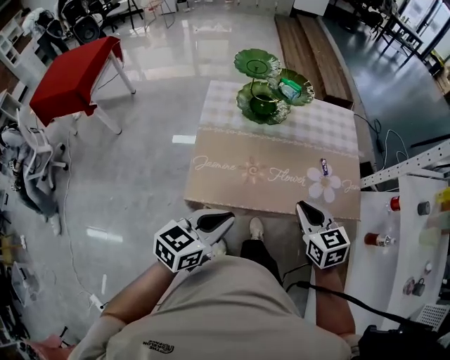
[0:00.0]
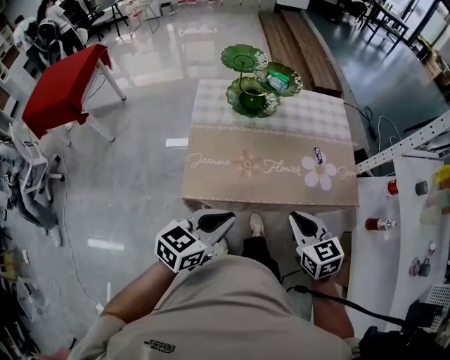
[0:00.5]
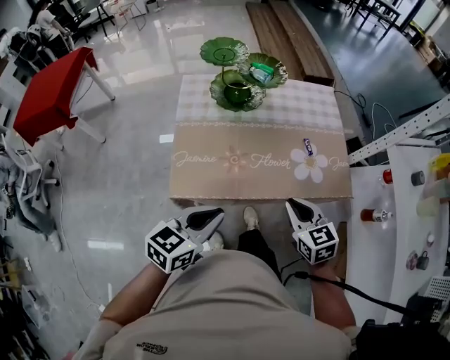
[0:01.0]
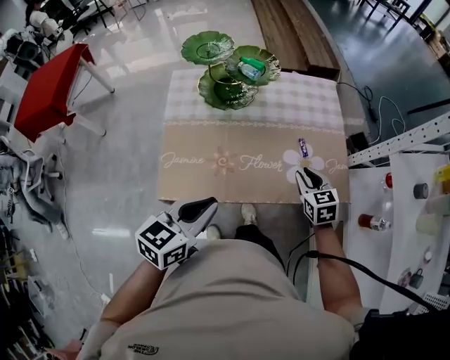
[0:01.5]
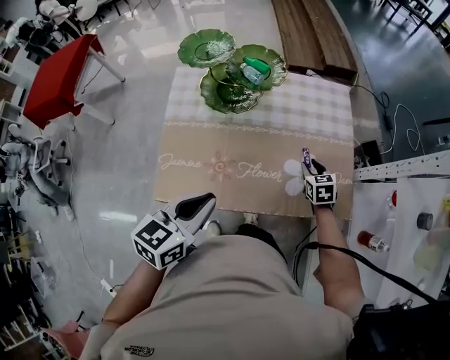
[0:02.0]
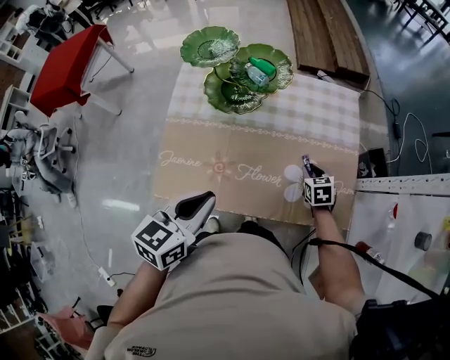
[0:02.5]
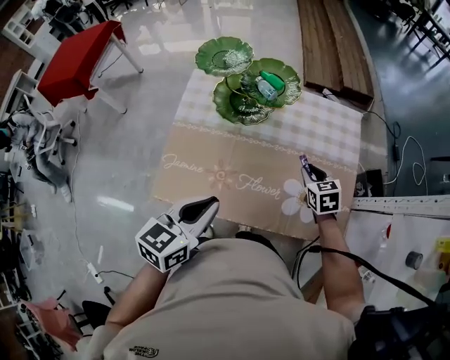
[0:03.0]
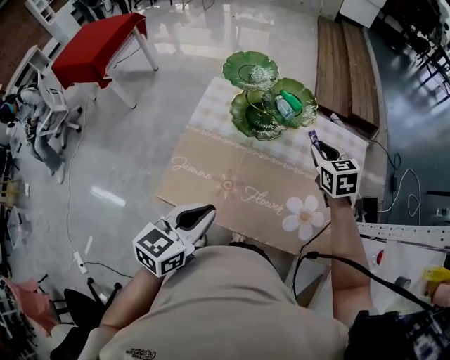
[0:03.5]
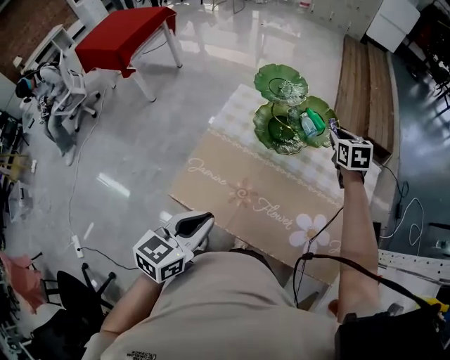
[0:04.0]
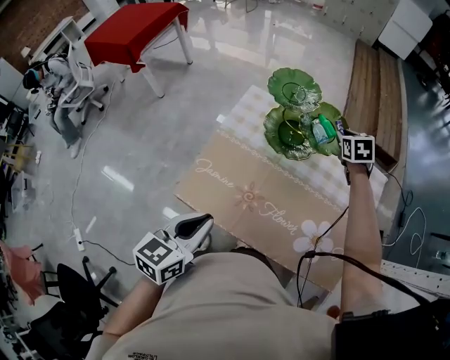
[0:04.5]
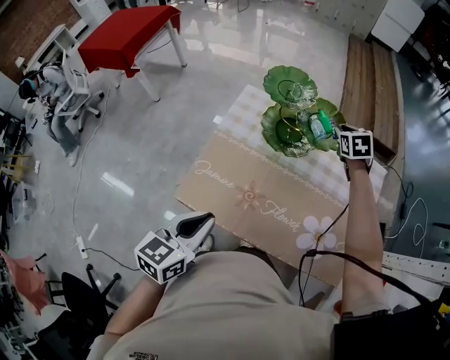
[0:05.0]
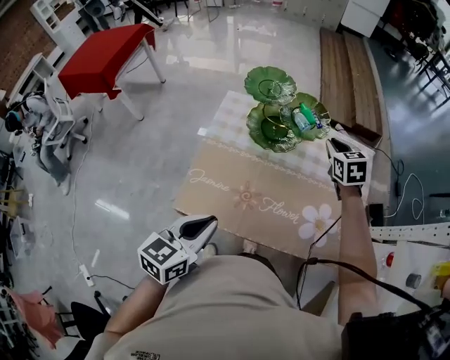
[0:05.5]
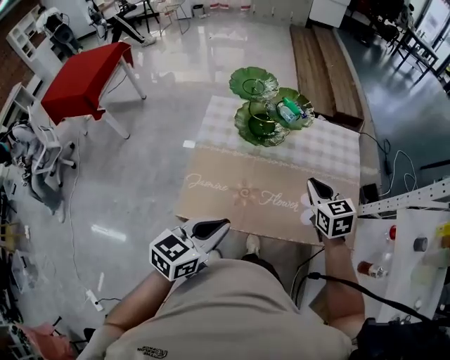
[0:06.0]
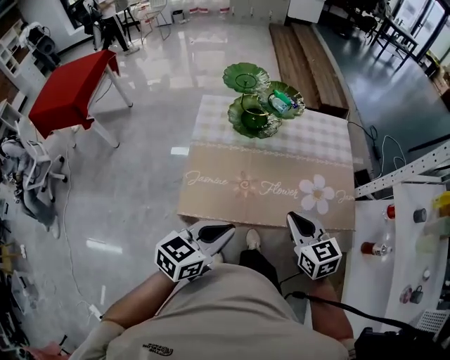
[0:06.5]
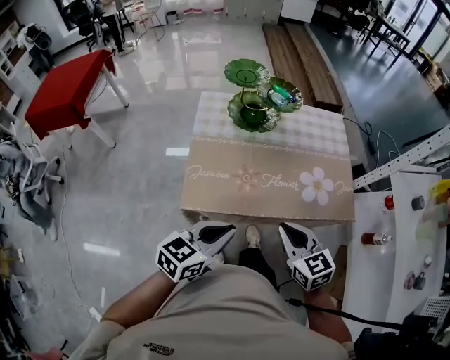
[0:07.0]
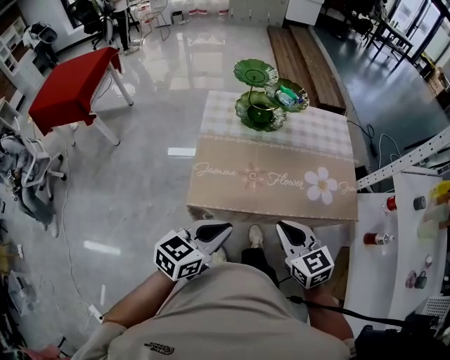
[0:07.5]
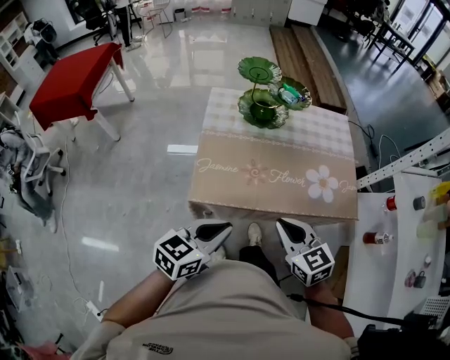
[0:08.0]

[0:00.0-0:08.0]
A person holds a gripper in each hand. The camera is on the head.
0:00.0 to 0:02.0: The right gripper is displaced forward, downward and to the right by some 35 cm, and opens up. The left gripper goes about 15 cm forward and to the right.
0:02.0 to 0:04.0: The right gripper is displaced forward, upward and to the left by some 35 cm, and turns by about 20 degrees; the left gripper is displaced to the left by about 5 cm, and swivels about 20 degrees.
0:04.0 to 0:06.0: The left gripper changes its angle by approximately 20 degrees, while the right gripper moves backward, roughly 25 cm.
0:06.0 to 0:08.0: The right gripper travels backward by roughly 25 cm. The left gripper moves backward, approximately 10 cm.

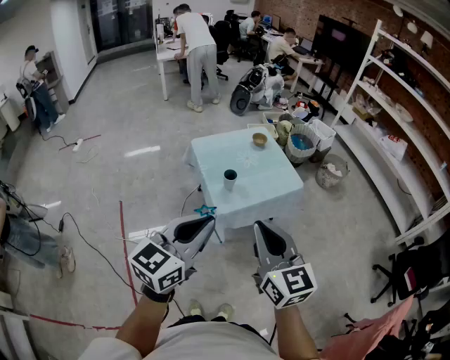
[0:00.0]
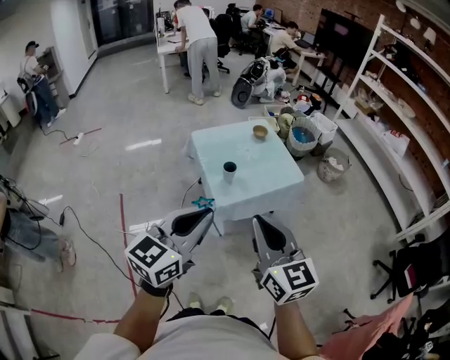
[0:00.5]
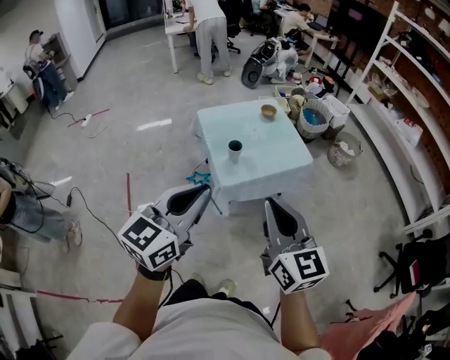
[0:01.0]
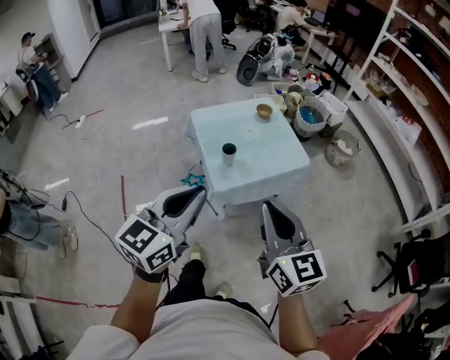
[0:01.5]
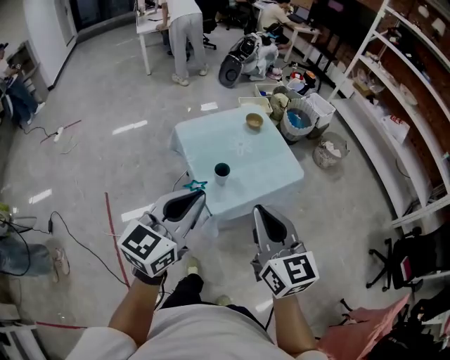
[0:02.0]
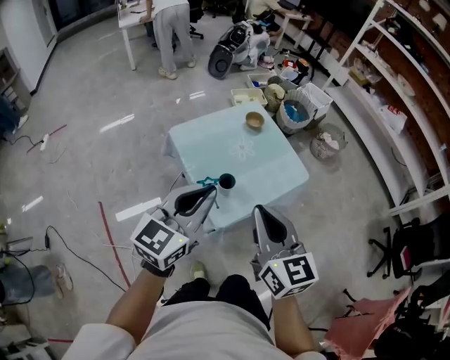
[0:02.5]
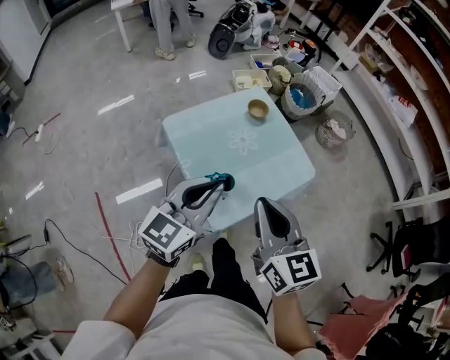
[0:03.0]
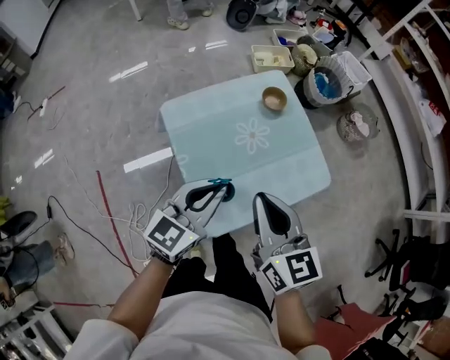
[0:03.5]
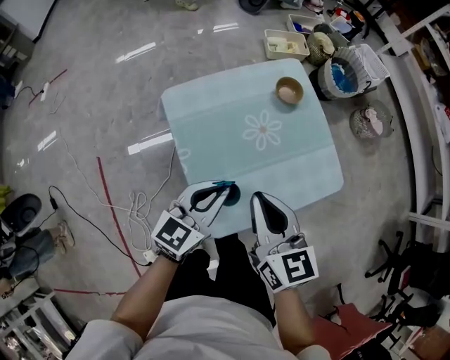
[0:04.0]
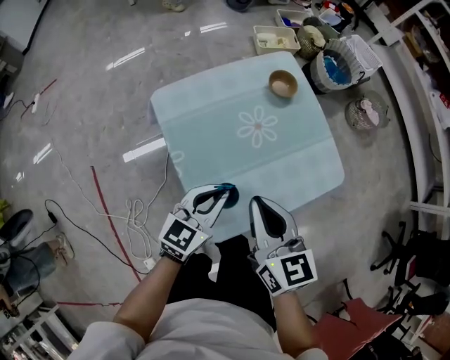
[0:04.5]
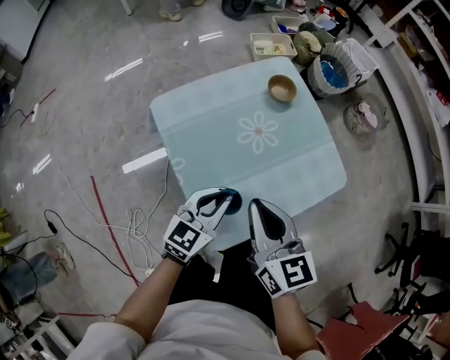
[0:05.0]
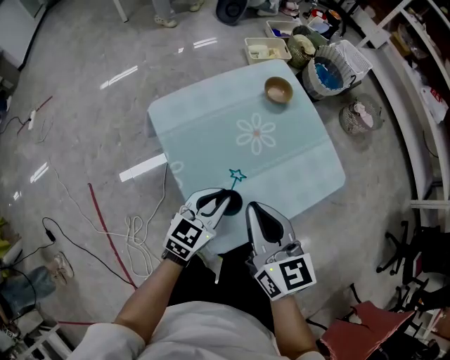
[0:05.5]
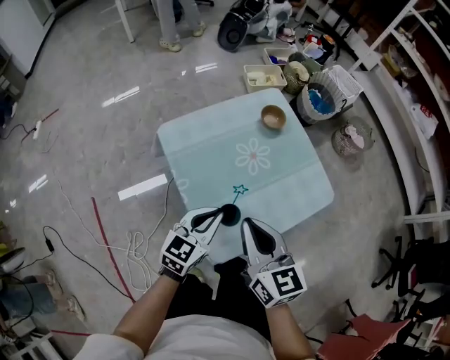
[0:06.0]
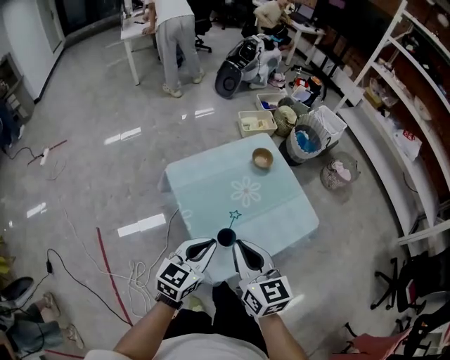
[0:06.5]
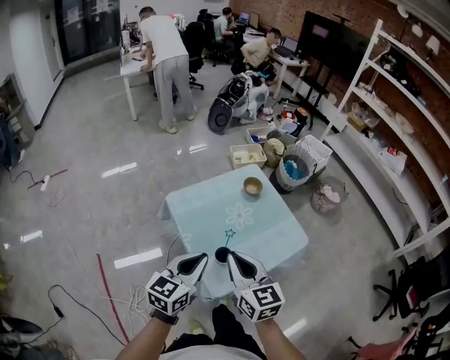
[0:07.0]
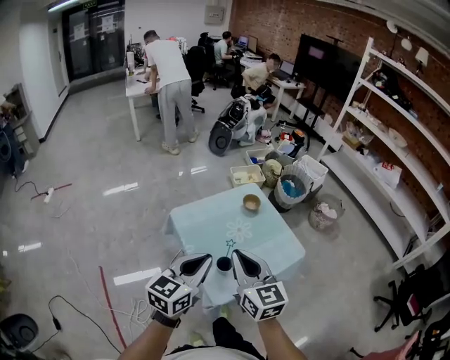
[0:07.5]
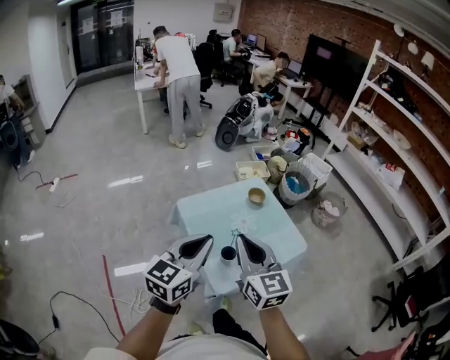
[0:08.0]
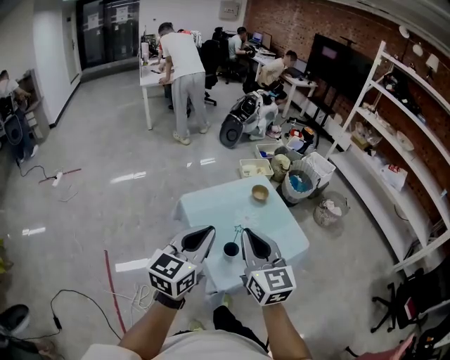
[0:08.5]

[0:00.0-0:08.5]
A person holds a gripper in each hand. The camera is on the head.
0:00.0 to 0:02.0: Both grippers move forward, about 15 cm.
0:02.0 to 0:04.0: Both grippers move forward and downward, about 40 cm.
0:04.0 to 0:06.5: The left gripper shifts approximately 5 cm backward, and reaches some 10 cm downward, then returns, while the right gripper goes some 10 cm backward and upward.
0:06.5 to 0:08.5: Both grippers move upward, about 20 cm.

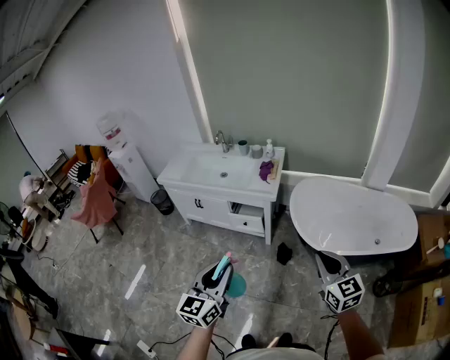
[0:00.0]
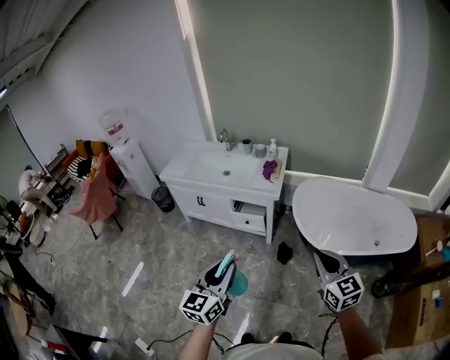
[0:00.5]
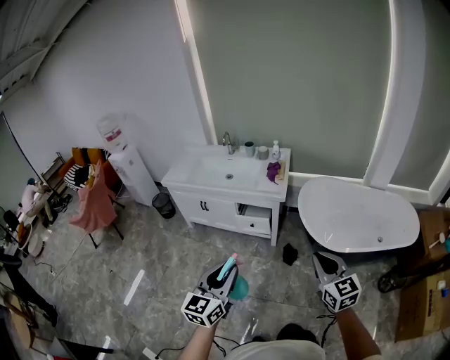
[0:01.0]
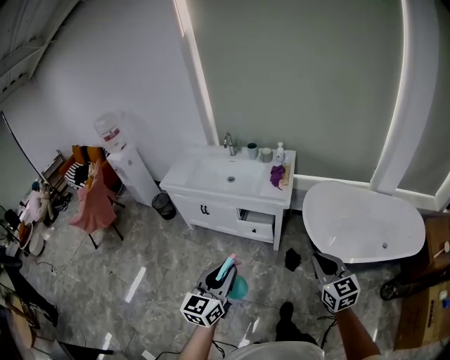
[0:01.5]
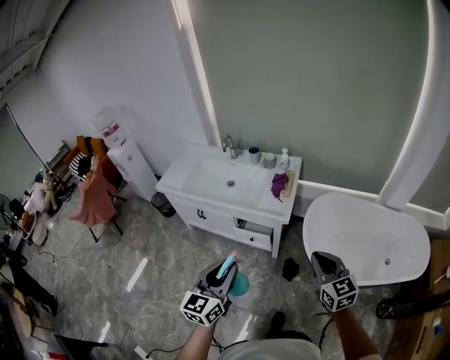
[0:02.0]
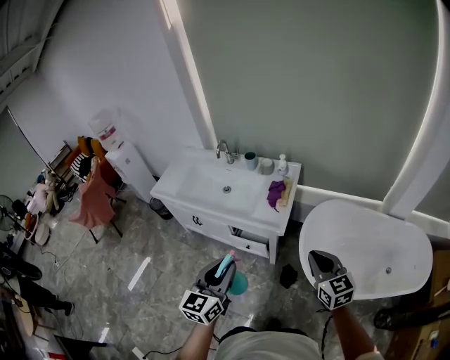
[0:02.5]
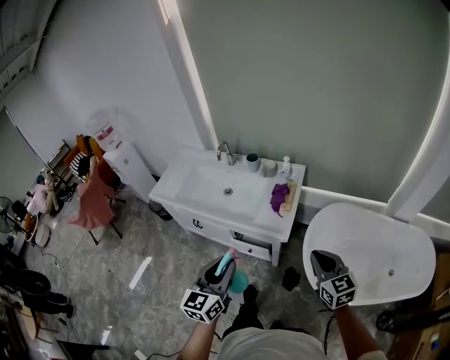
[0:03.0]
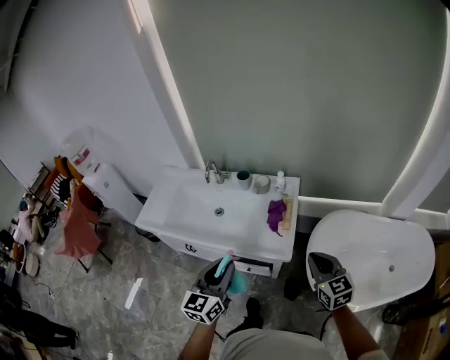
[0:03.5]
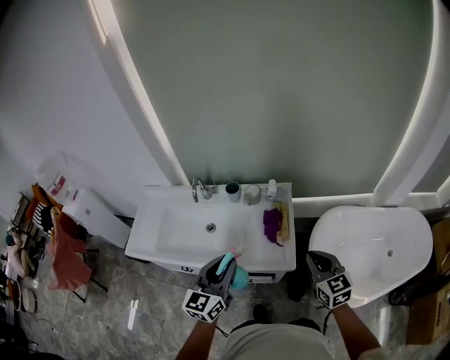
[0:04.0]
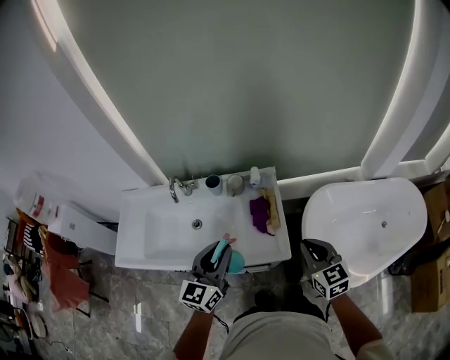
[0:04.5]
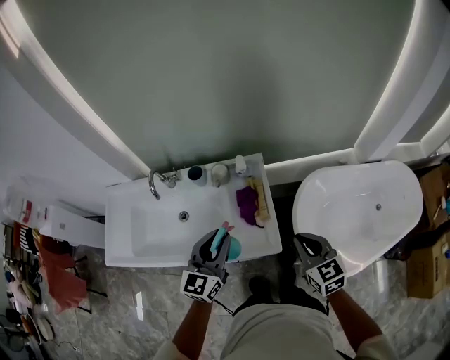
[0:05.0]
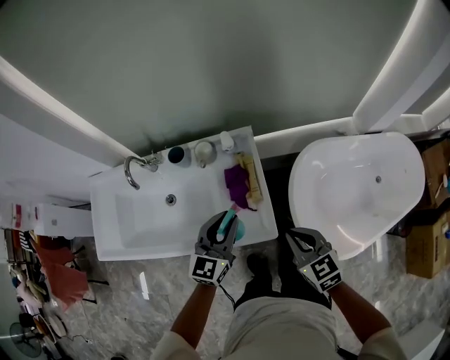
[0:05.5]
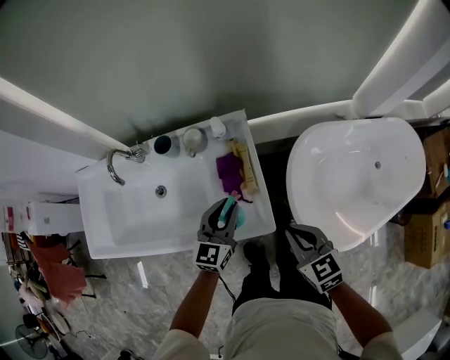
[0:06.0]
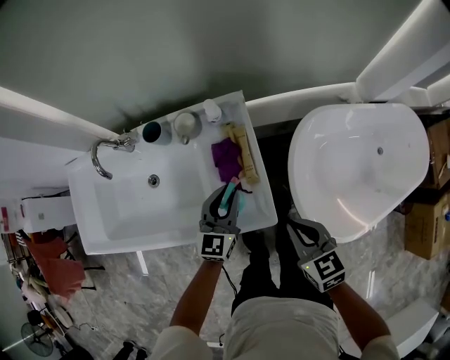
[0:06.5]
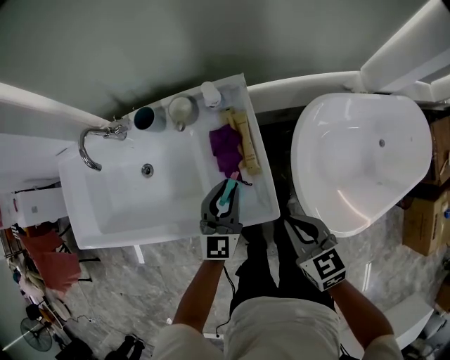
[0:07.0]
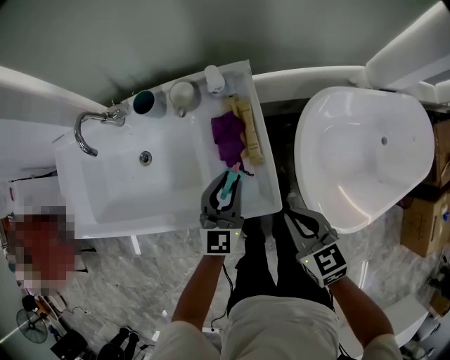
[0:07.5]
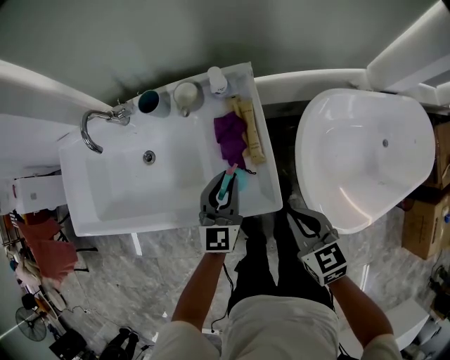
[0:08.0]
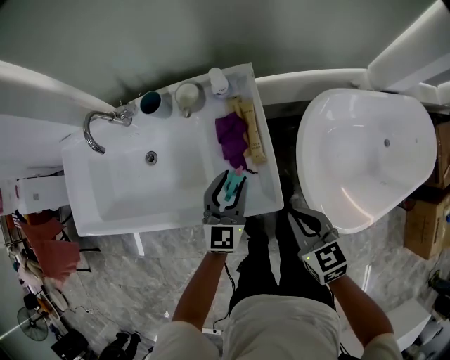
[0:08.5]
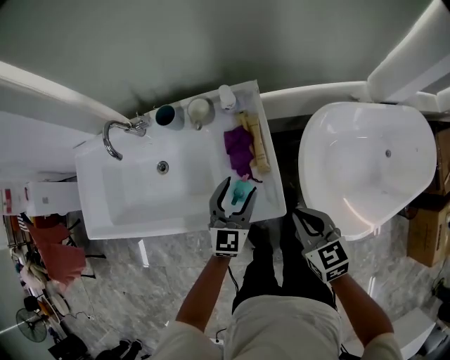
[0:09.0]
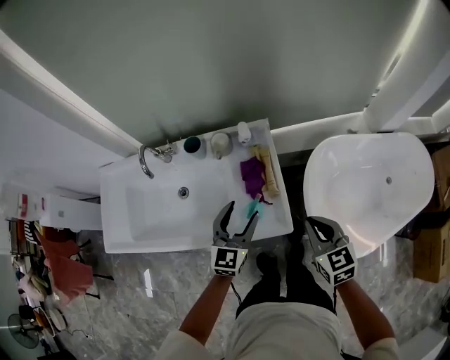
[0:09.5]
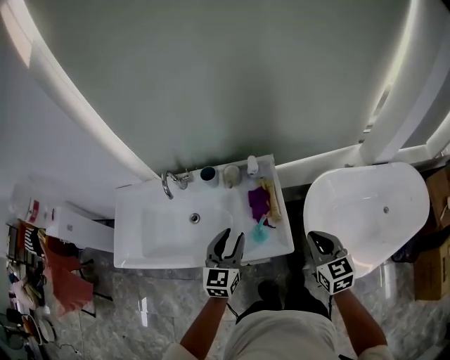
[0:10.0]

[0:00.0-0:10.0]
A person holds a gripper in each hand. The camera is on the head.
0:00.0 to 0:02.0: The grippers both shift forward by some 25 cm.
0:02.0 to 0:04.0: Both grippers move forward, some 35 cm.
0:04.0 to 0:06.0: The right gripper moves downward and forward, some 15 cm; the left gripper is displaced downward, forward and to the right by about 30 cm.
0:06.0 to 0:08.0: Both grippers move downward, approximately 5 cm.
0:08.0 to 0:10.0: The right gripper shifts approximately 15 cm upward. Meanwhile the left gripper is displaced upward and to the left by some 20 cm, and opens, then closes once more.
